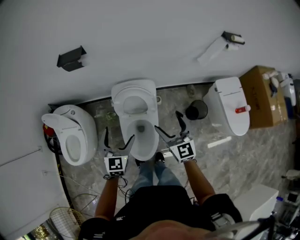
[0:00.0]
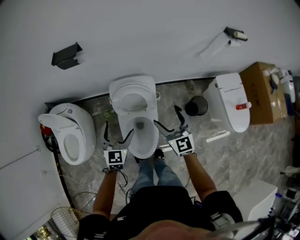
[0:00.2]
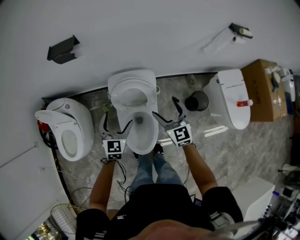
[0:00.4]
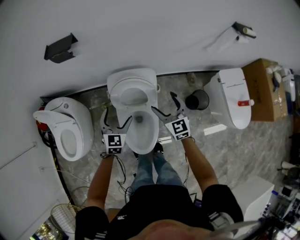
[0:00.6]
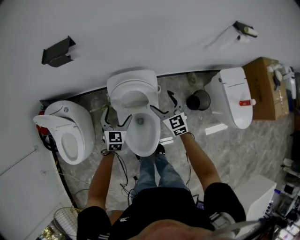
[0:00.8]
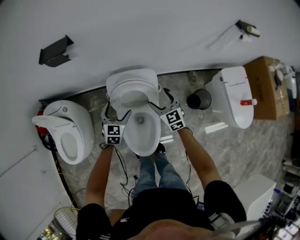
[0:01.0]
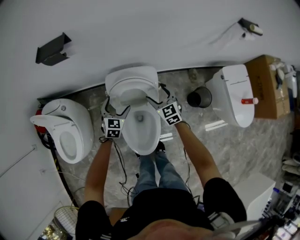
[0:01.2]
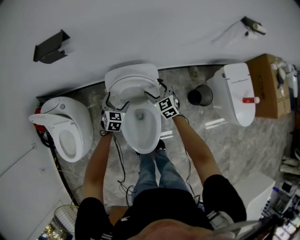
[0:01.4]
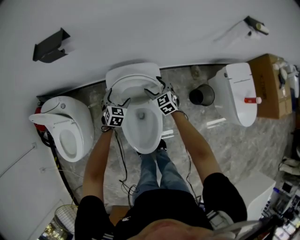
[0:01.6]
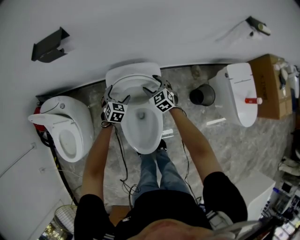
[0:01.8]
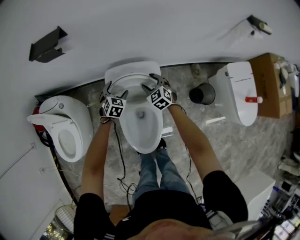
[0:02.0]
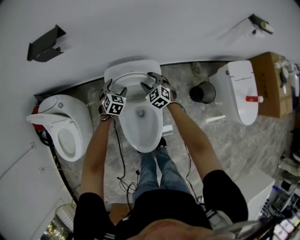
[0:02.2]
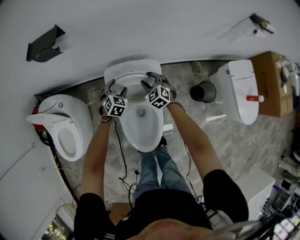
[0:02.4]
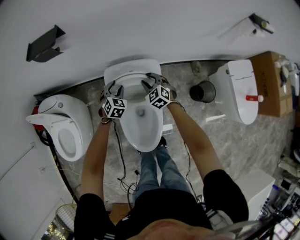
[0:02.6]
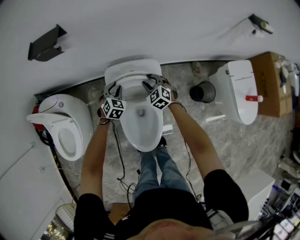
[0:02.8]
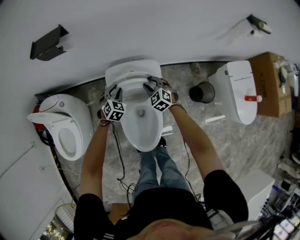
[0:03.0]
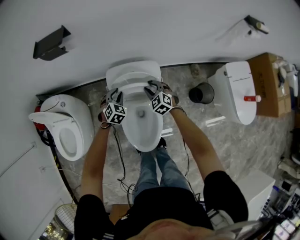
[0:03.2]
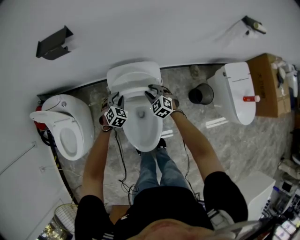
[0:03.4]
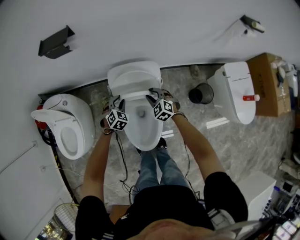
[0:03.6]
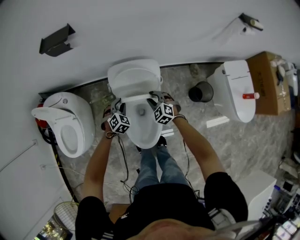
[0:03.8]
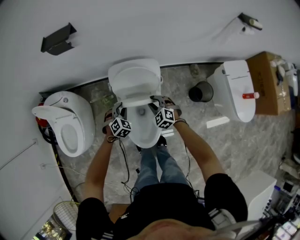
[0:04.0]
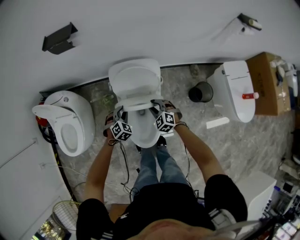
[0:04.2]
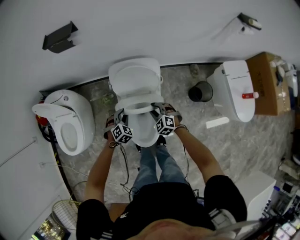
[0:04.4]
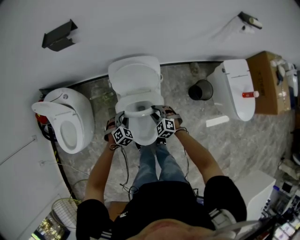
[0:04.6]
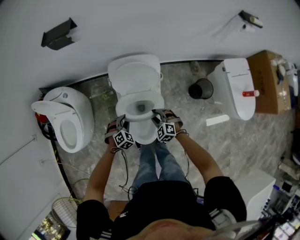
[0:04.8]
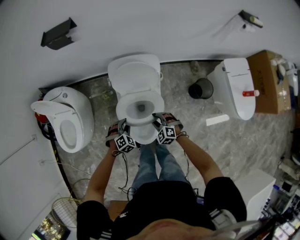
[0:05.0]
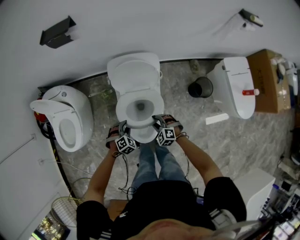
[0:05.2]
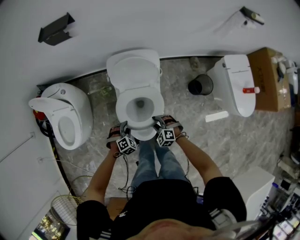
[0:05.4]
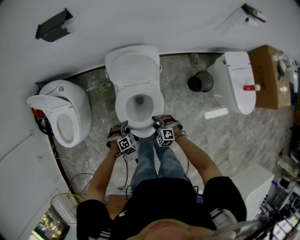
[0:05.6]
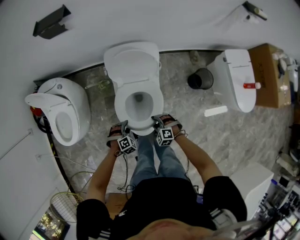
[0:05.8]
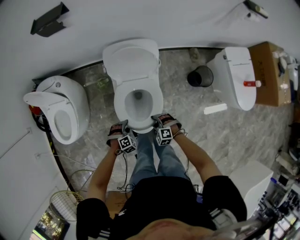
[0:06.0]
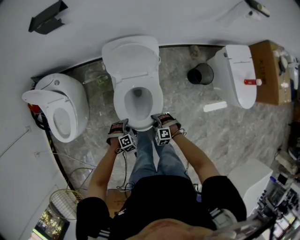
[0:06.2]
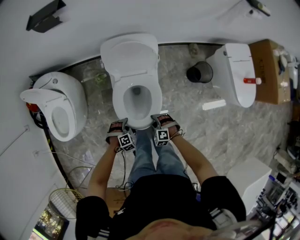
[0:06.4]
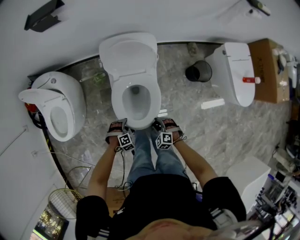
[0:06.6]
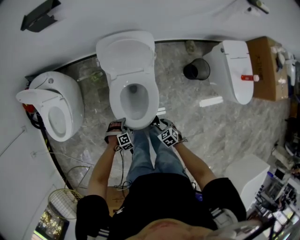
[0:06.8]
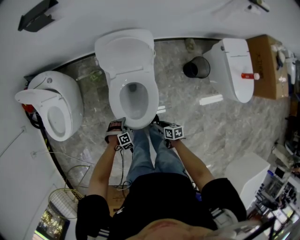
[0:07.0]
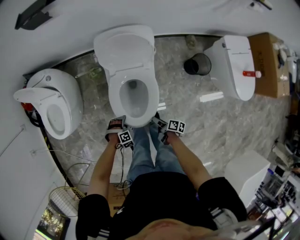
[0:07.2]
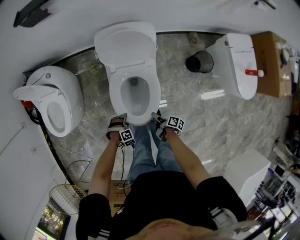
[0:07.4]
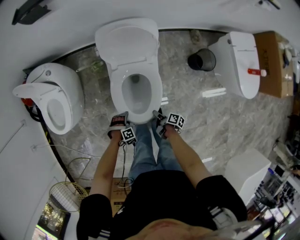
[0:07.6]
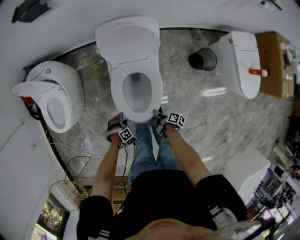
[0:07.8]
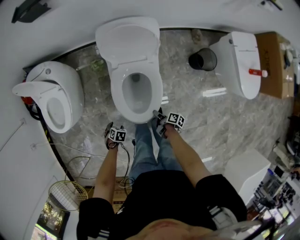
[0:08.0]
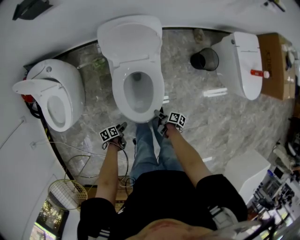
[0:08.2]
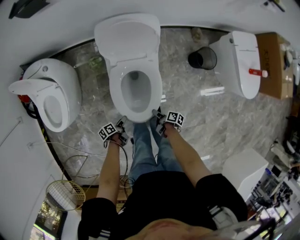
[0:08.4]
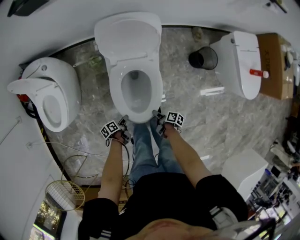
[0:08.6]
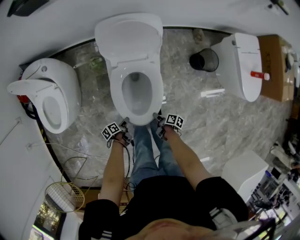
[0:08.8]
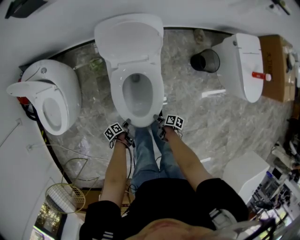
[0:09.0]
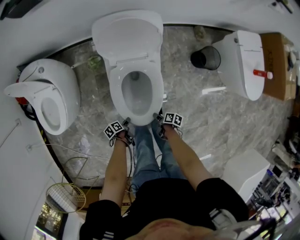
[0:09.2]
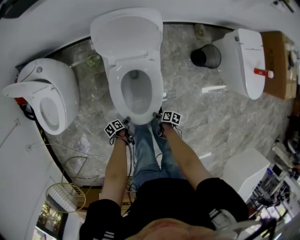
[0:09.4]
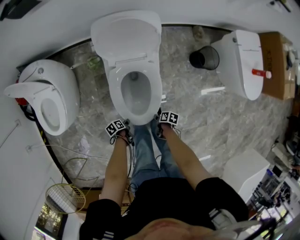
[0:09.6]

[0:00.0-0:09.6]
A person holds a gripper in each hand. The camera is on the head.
0:00.0 to 0:01.6: The two grippers go some 35 cm downward and forward. The left gripper swivels about 30 degrees. The right gripper changes its angle by approximately 30 degrees.
0:01.6 to 0:03.2: The right gripper closes its fingers, while the left gripper closes up.
0:03.2 to 0:04.8: Both grippers travel together backward, roughly 20 cm.
0:04.8 to 0:06.4: Both grippers move backward and downward, about 20 cm. The right gripper rotates approximately 20 degrees. The left gripper swivels roughly 20 degrees.
0:06.4 to 0:08.0: The right gripper goes about 10 cm downward, and rolls clockwise, seen from behind, by some 140 degrees. Meanwhile the left gripper shifts by roughly 15 cm, and rolls counterclockwise, seen from behind, by about 60 degrees.
0:08.0 to 0:09.6: The two grippers go roughly 5 cm downward. The right gripper changes its angle by about 30 degrees. The left gripper rolls counterclockwise, seen from behind, by approximately 70 degrees.

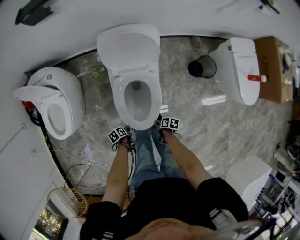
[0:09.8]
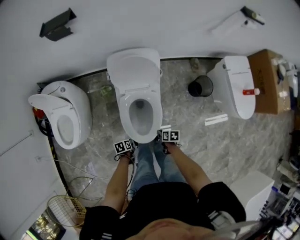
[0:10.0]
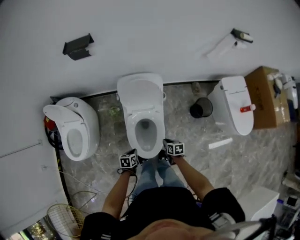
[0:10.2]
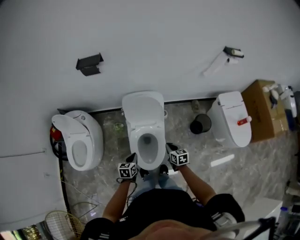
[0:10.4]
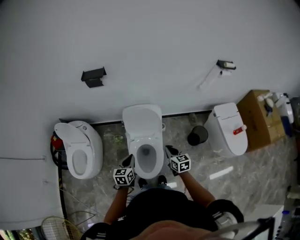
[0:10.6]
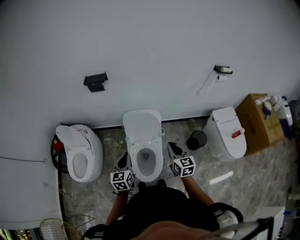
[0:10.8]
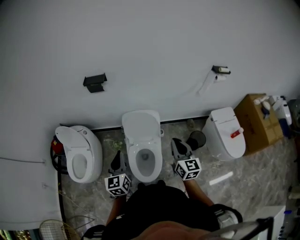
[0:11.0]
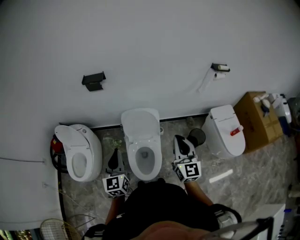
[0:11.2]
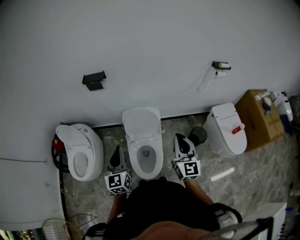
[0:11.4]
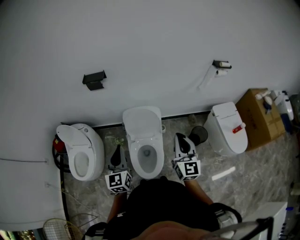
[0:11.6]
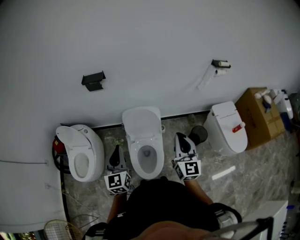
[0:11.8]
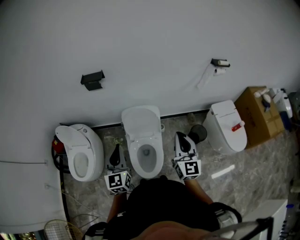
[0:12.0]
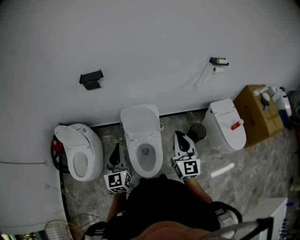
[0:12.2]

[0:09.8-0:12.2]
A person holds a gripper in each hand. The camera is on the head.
0:09.8 to 0:11.0: The grippers both shift upward by approximately 60 cm. The left gripper angles its fingers upward, by approximately 50 degrees. Meanwhile the right gripper tilts its fingers about 50 degrees upward.
0:11.0 to 0:12.2: The right gripper goes some 5 cm upward.

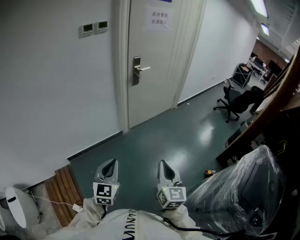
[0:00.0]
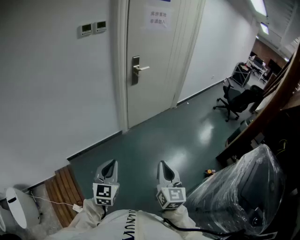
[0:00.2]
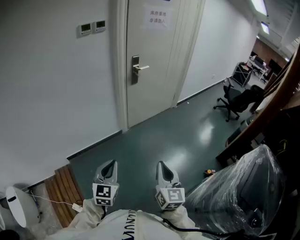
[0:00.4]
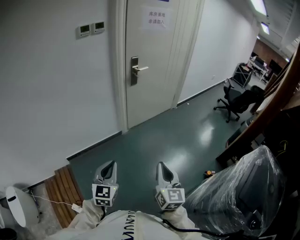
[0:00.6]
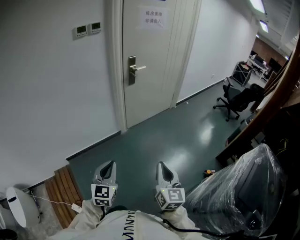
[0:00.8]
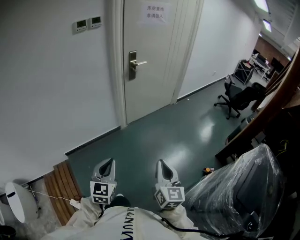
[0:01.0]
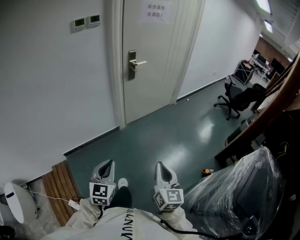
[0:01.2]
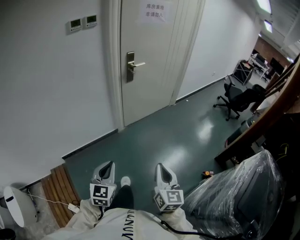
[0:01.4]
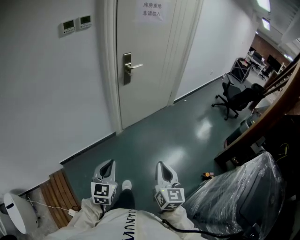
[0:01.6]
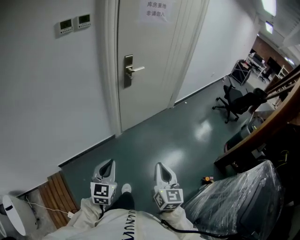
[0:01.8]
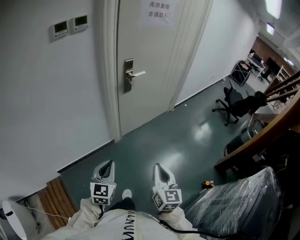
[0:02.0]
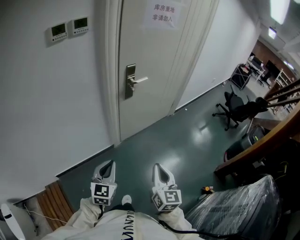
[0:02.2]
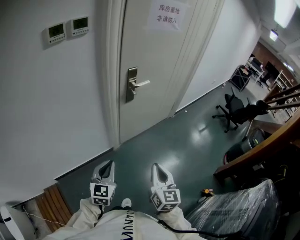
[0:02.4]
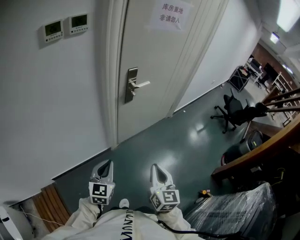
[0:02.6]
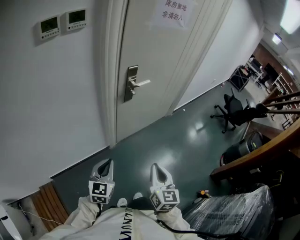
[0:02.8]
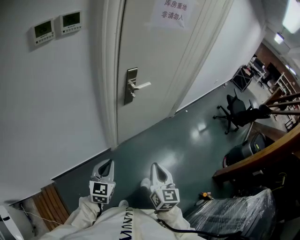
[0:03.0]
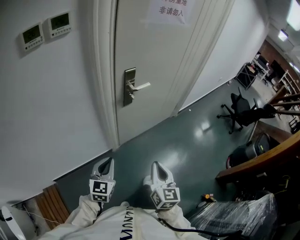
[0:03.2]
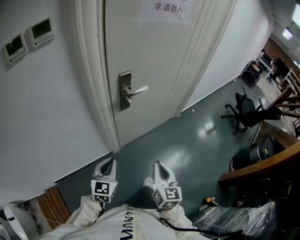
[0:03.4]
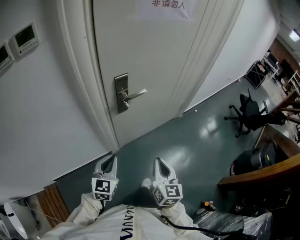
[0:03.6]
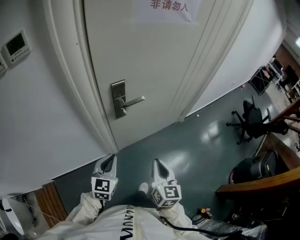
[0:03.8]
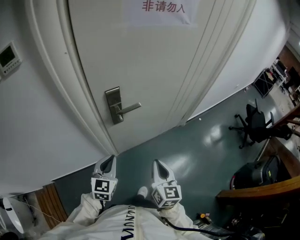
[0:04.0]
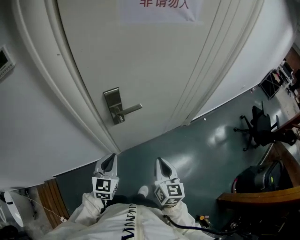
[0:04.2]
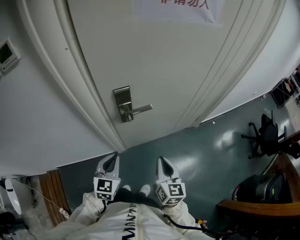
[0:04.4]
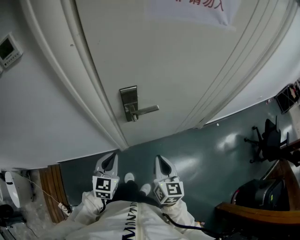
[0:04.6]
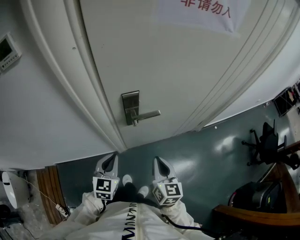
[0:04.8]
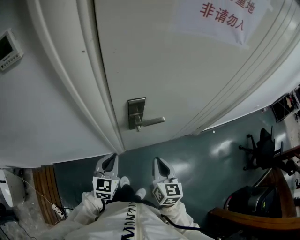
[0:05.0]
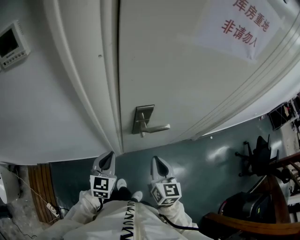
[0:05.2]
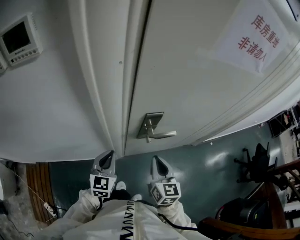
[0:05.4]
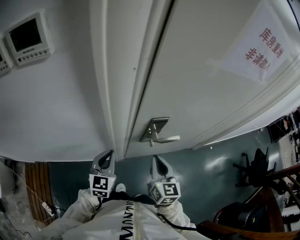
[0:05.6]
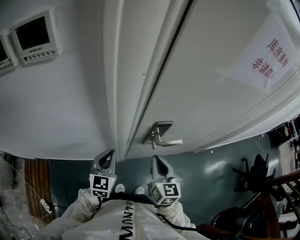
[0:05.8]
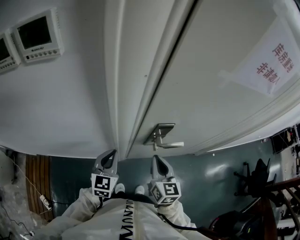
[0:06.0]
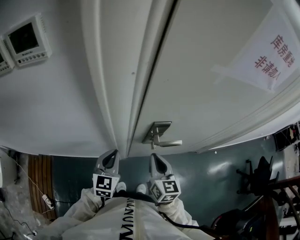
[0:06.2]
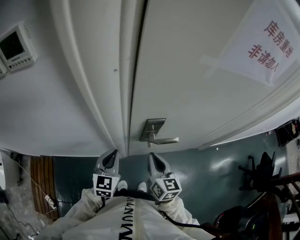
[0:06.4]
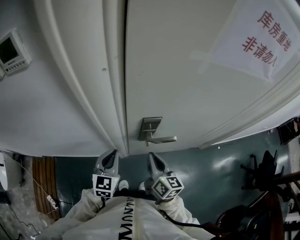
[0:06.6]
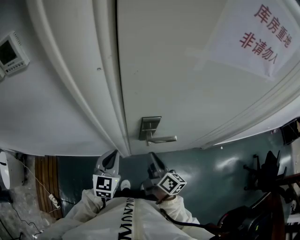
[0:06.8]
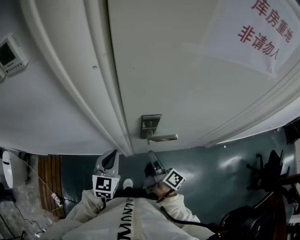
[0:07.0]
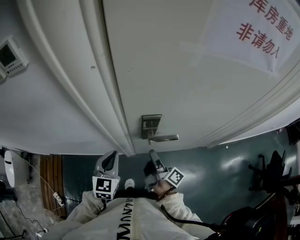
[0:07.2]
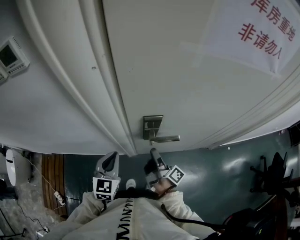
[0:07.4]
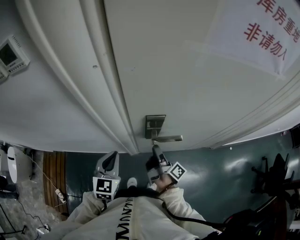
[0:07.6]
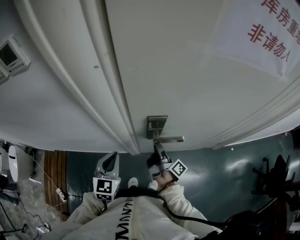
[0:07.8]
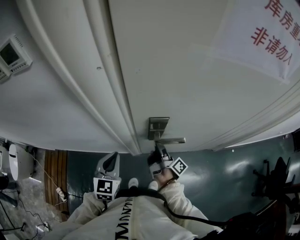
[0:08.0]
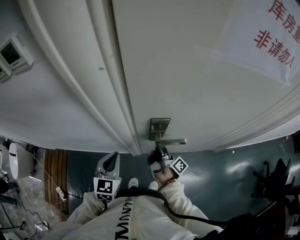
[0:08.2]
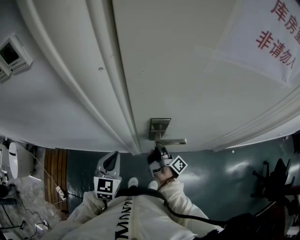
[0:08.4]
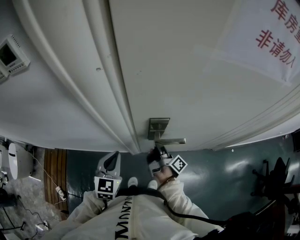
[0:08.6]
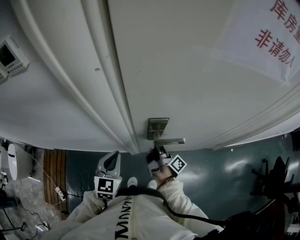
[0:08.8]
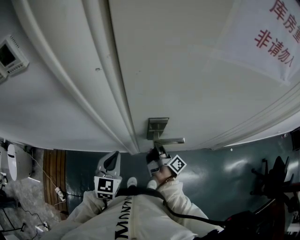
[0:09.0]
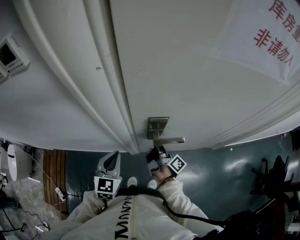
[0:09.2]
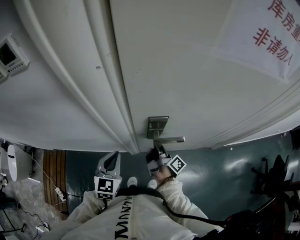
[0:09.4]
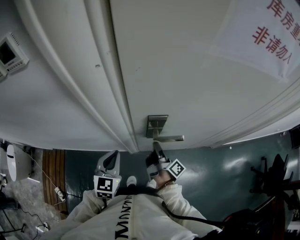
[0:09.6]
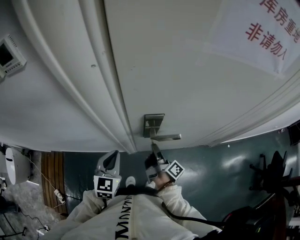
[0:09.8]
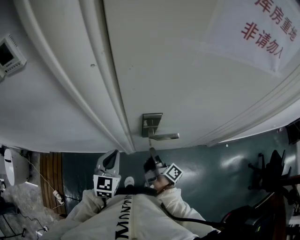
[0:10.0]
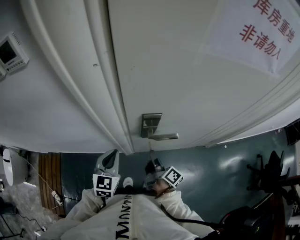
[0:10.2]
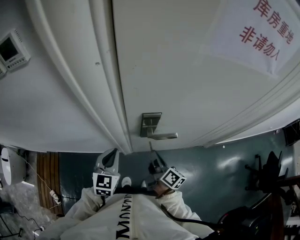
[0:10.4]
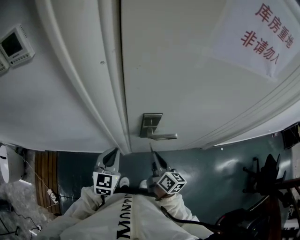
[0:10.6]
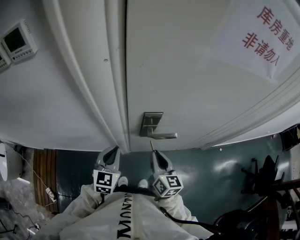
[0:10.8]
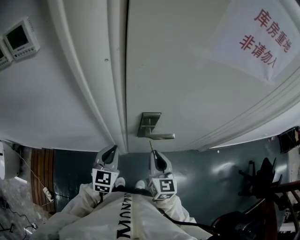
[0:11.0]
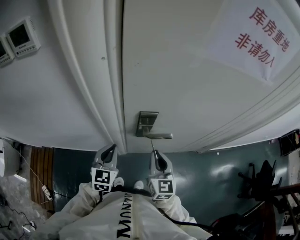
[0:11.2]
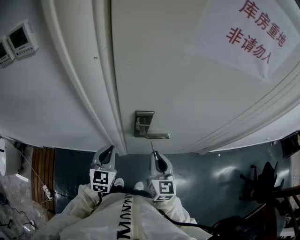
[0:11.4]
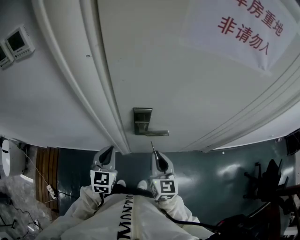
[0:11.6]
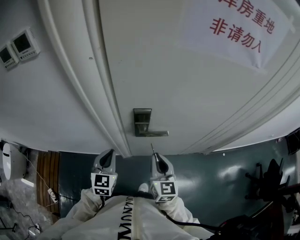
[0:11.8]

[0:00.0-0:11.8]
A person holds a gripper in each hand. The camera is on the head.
0:00.0 to 0:01.4: The left gripper ends up about 5 cm from where it was; the right gripper moves roughly 5 cm.
0:01.4 to 0:03.0: Both grippers move forward, roughly 35 cm.
0:03.0 to 0:04.4: The left gripper is displaced forward and to the right by approximately 25 cm. The right gripper goes about 30 cm forward.
0:04.4 to 0:06.0: The right gripper is displaced forward and to the left by some 20 cm, while the left gripper is displaced to the left and forward by some 15 cm.
0:06.0 to 0:07.4: The right gripper goes about 10 cm downward, rolls clockwise, seen from behind, by some 80 degrees, and opens.
0:07.4 to 0:08.8: The right gripper heads forward, covering about 5 cm, and closes up.
0:08.8 to 0:10.4: The right gripper is displaced backward by approximately 10 cm, and changes its angle by approximately 30 degrees.
0:10.4 to 0:11.8: The right gripper heads upward, covering roughly 5 cm, and rolls counterclockwise, seen from behind, by about 60 degrees.
